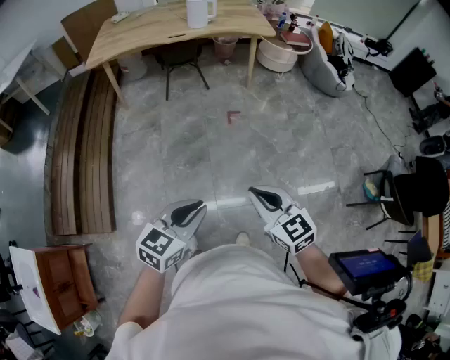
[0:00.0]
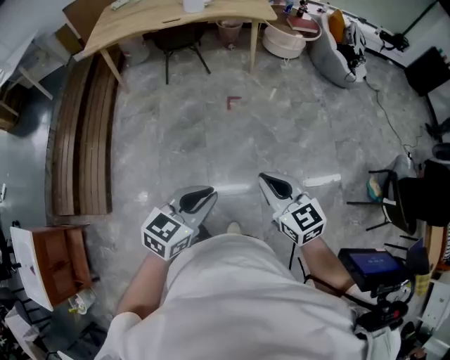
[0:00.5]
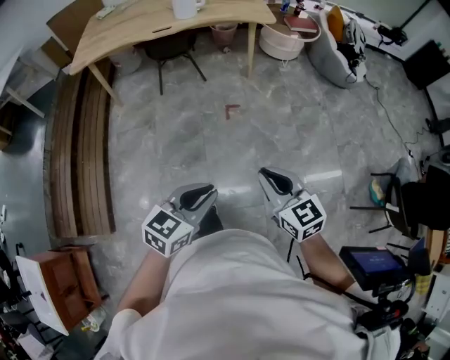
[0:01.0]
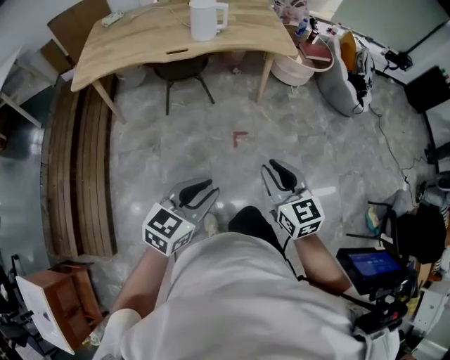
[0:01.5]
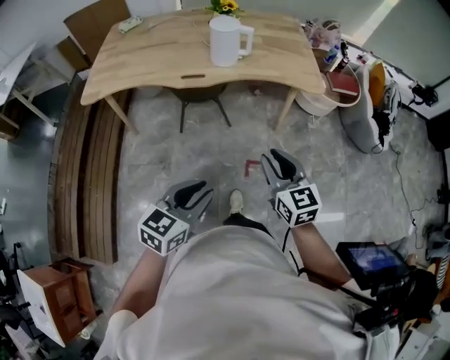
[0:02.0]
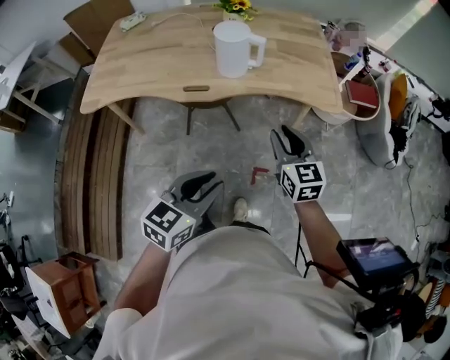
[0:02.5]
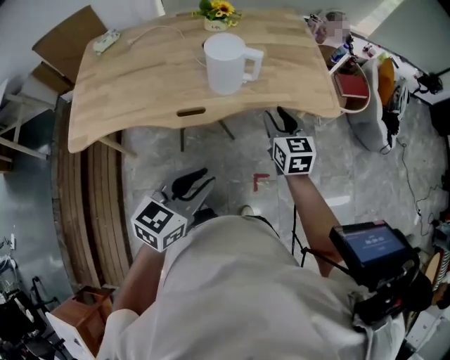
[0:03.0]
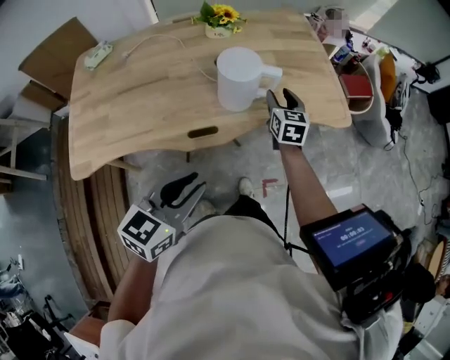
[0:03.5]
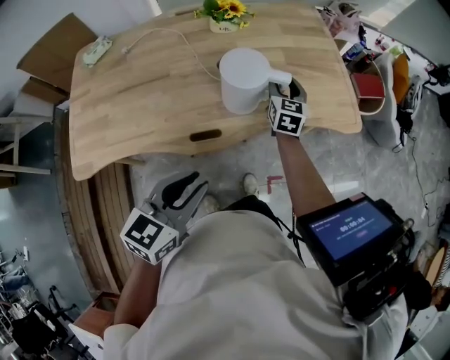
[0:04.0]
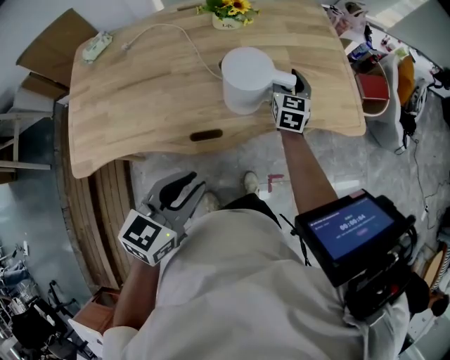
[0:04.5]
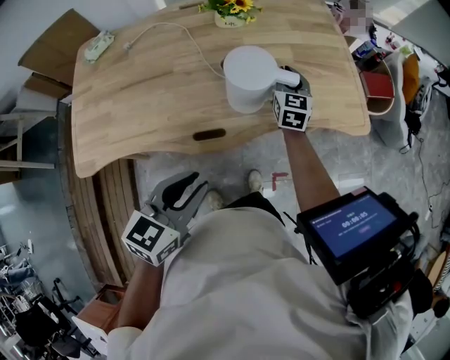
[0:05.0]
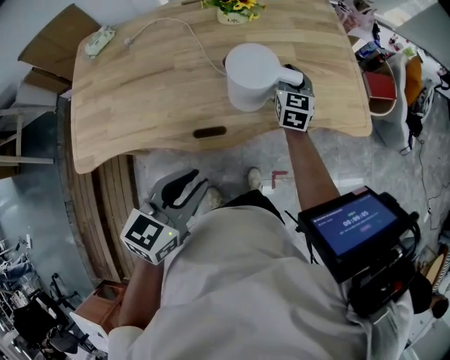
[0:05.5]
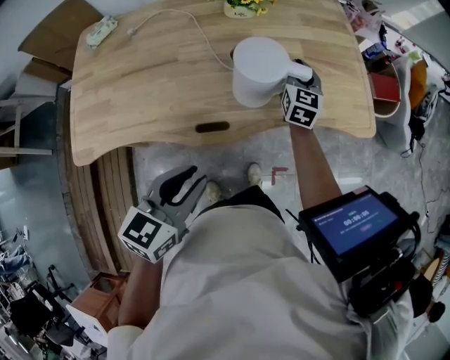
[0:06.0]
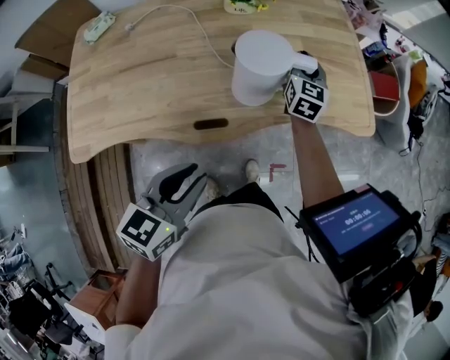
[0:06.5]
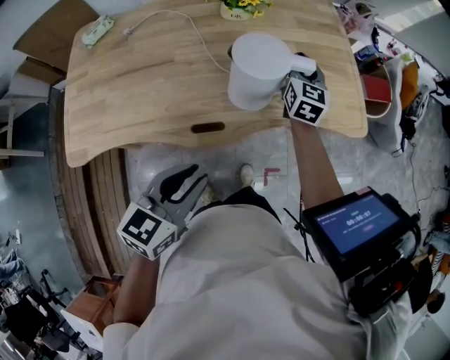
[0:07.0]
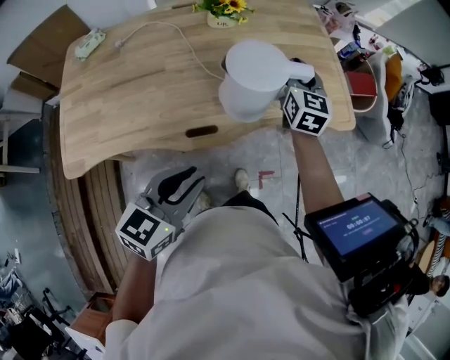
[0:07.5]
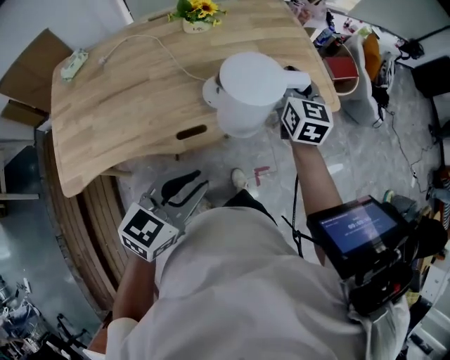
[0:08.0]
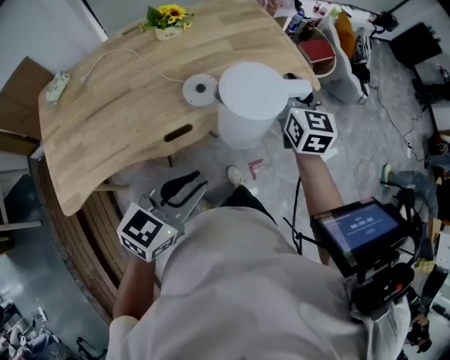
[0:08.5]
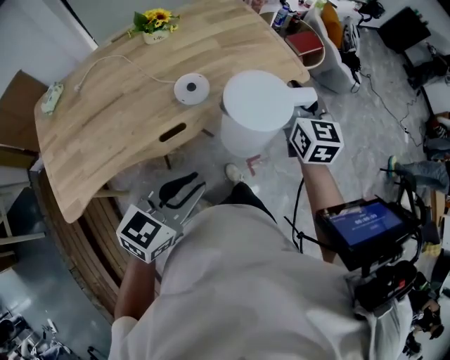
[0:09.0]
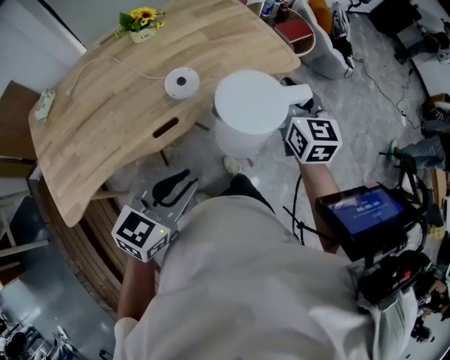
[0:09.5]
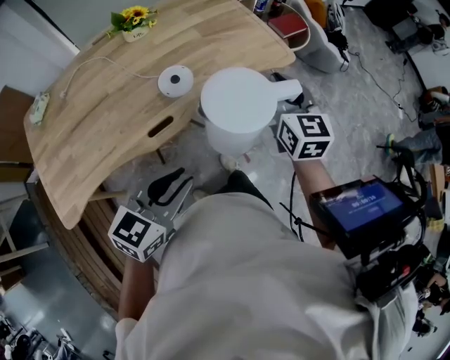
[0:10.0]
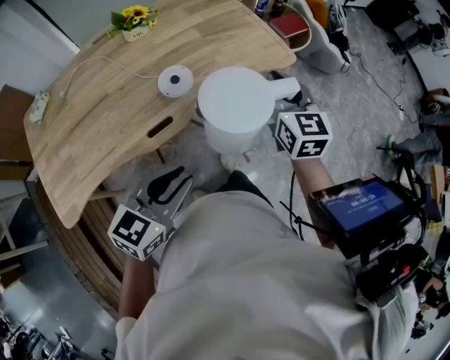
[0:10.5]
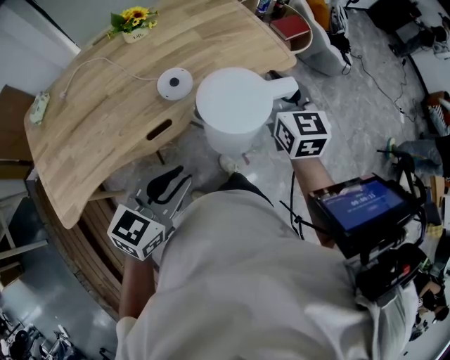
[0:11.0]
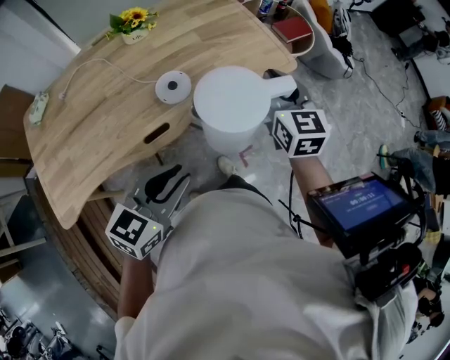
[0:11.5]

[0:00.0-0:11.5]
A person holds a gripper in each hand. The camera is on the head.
0:00.0 to 0:02.0: The two grippers travel together, forward, approximately 60 cm. The right gripper opens.
0:02.0 to 0:04.0: The two grippers travel together, forward and to the left, approximately 50 cm. The right gripper swivels some 30 degrees, and opens.
0:04.0 to 0:06.0: The right gripper closes.
0:06.0 to 0:07.5: The right gripper travels upward by some 10 cm.
0:07.5 to 0:09.5: The right gripper shifts roughly 25 cm to the right and backward. Meanwhile the left gripper goes some 5 cm to the right, and swivels approximately 20 degrees.
0:09.5 to 0:11.5: The grippers make only small movements.

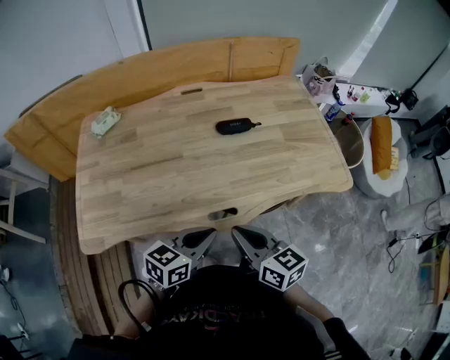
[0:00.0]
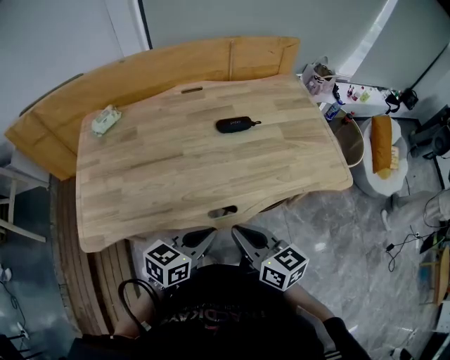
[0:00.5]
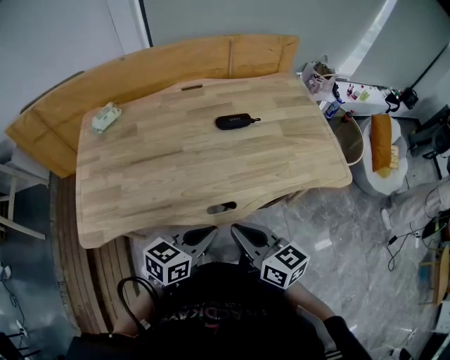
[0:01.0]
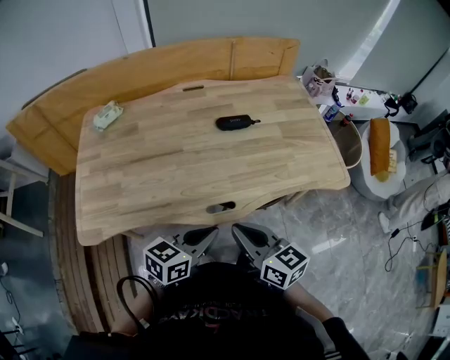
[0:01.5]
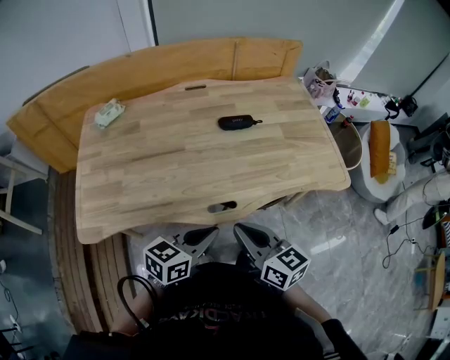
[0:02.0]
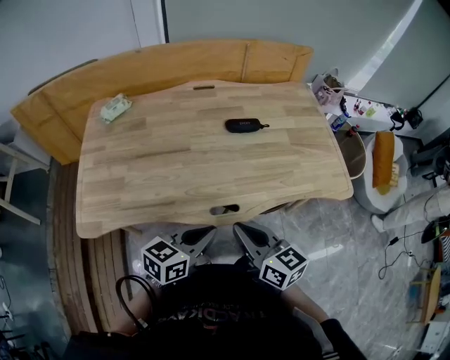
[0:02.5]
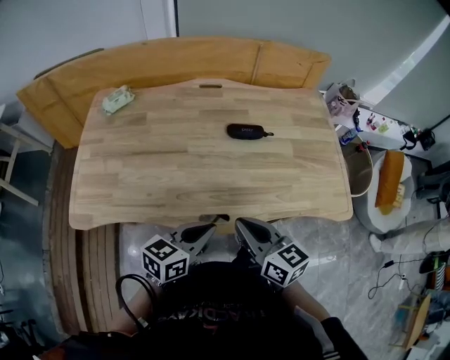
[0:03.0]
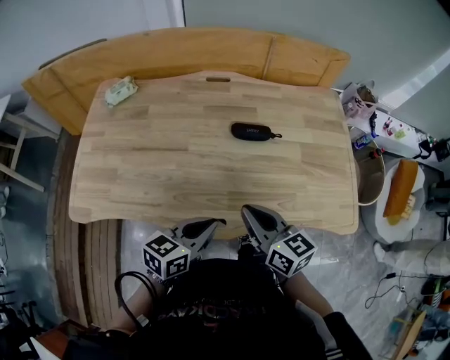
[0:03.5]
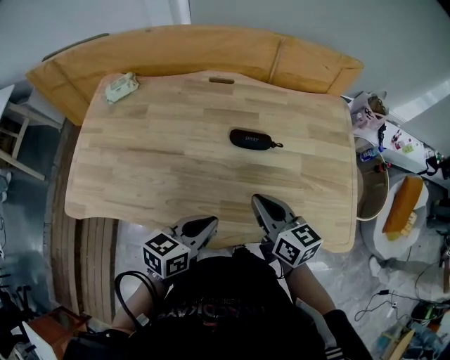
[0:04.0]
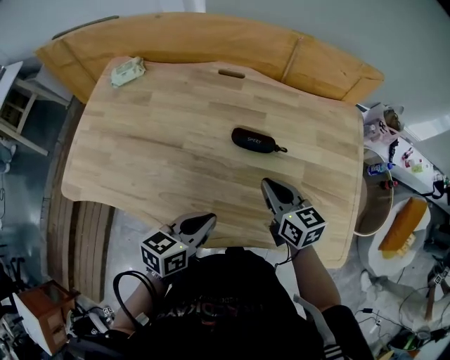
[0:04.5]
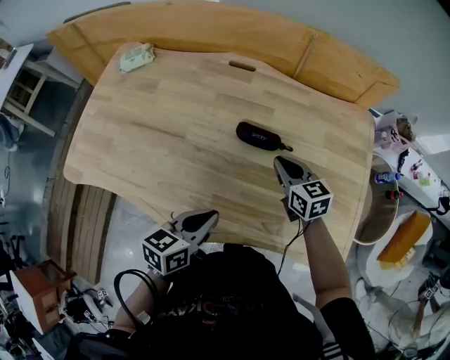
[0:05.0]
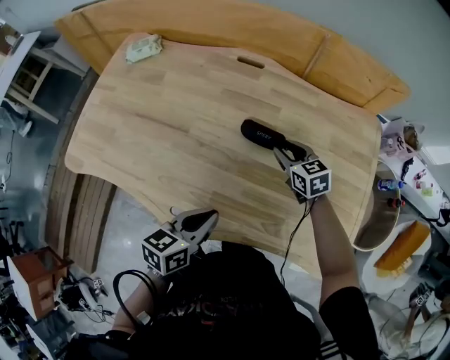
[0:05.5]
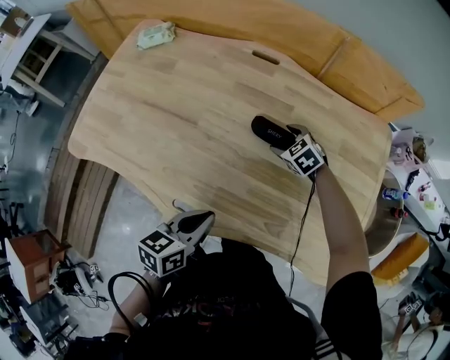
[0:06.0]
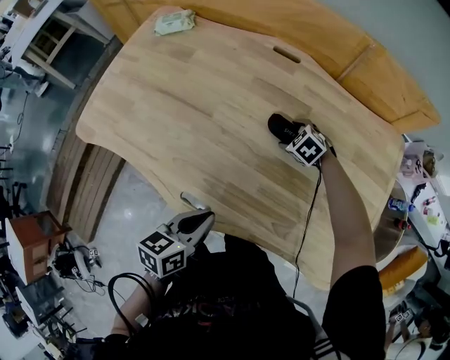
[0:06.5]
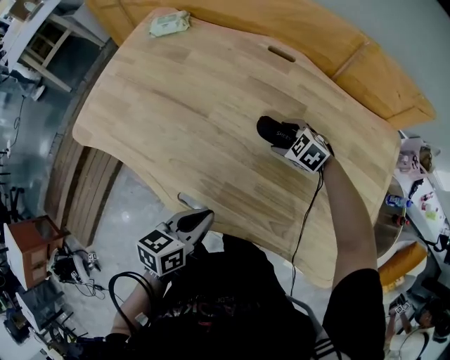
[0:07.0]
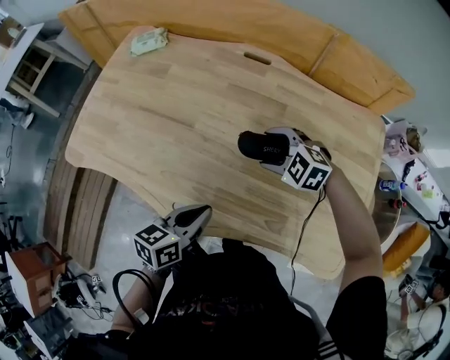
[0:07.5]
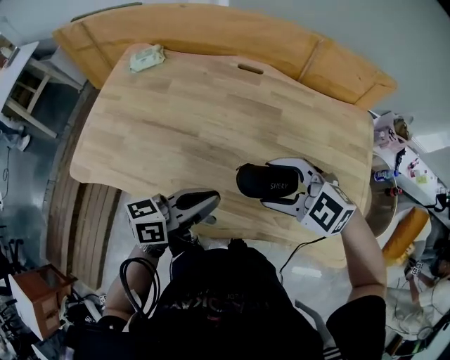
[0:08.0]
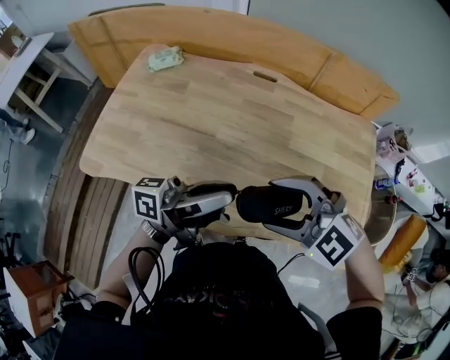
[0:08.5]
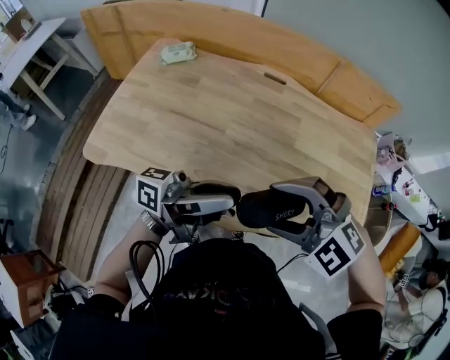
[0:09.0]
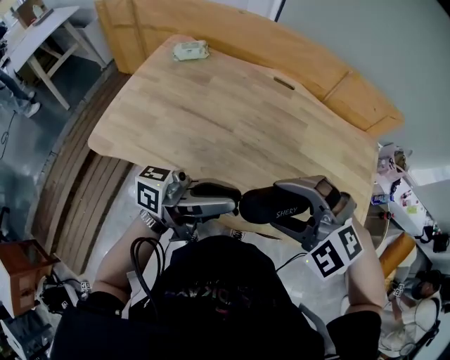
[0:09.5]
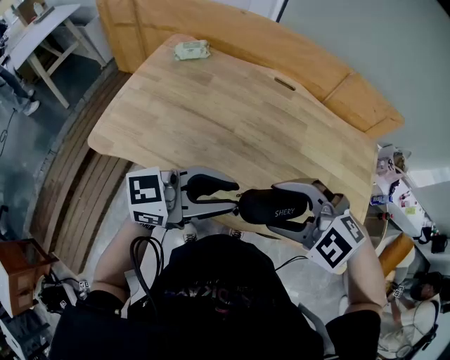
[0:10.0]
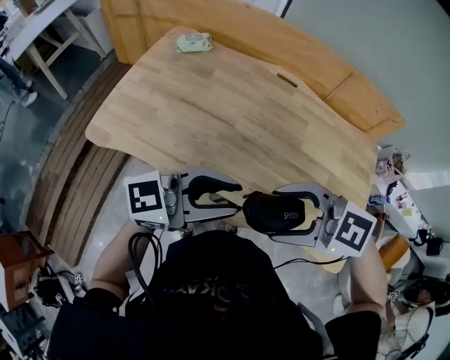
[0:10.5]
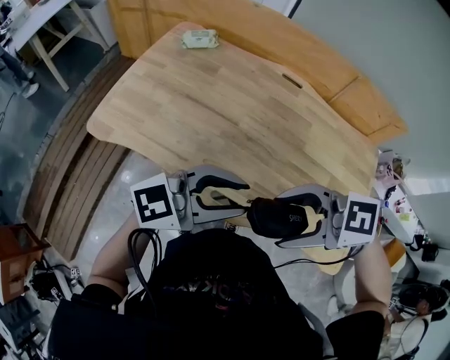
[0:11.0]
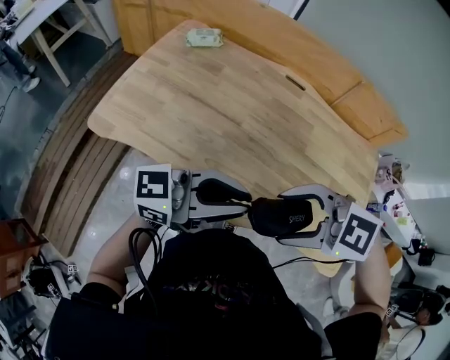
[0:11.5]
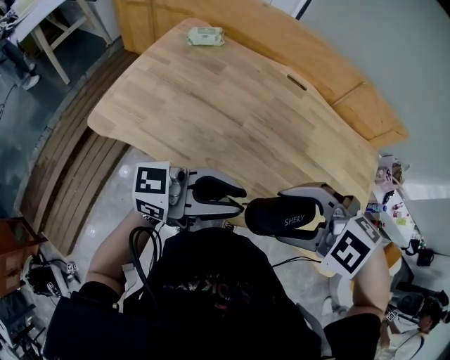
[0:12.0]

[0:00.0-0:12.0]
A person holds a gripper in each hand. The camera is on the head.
0:00.0 to 0:02.0: The grippers make only small movements.
0:02.0 to 0:04.0: The right gripper shifts approximately 25 cm forward and to the right. The left gripper heads forward and to the right, covering roughly 15 cm, and rotates about 20 degrees.
0:04.0 to 0:06.0: The left gripper swivels roughly 20 degrees; the right gripper goes about 30 cm forward and downward, angles its fingers downward, by about 40 degrees, and opens its fingers.
0:06.0 to 0:08.0: The right gripper goes about 25 cm upward, and swivels approximately 30 degrees. Meanwhile the left gripper is displaced upward by roughly 10 cm, and changes its angle by approximately 30 degrees.
0:08.0 to 0:10.0: The right gripper moves about 15 cm; the left gripper shifts approximately 10 cm upward, and changes its angle by some 30 degrees.

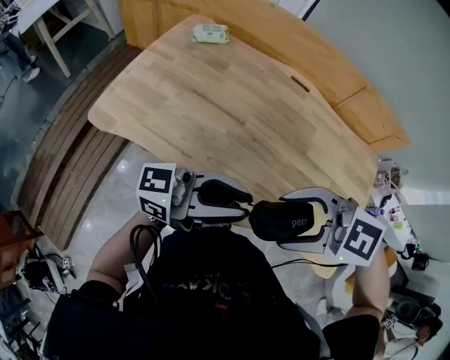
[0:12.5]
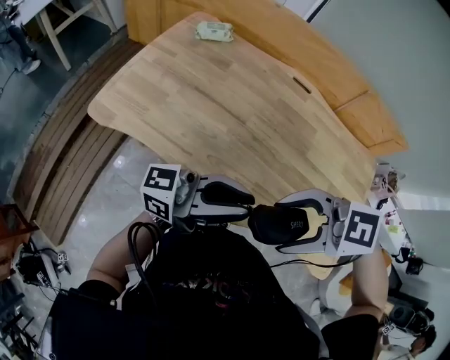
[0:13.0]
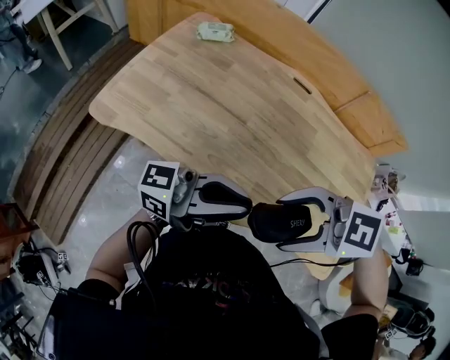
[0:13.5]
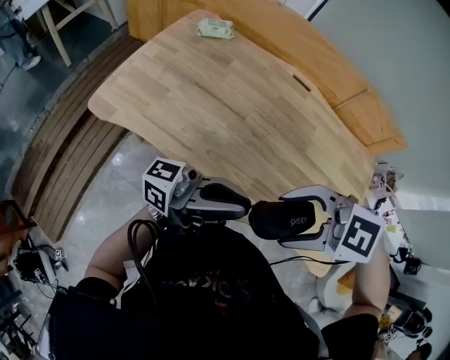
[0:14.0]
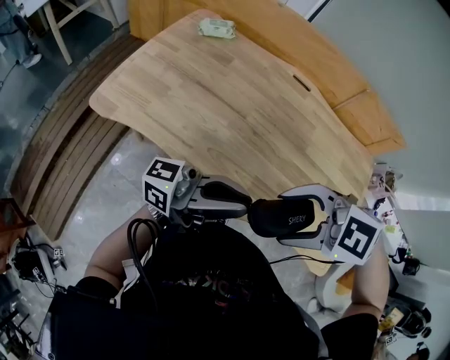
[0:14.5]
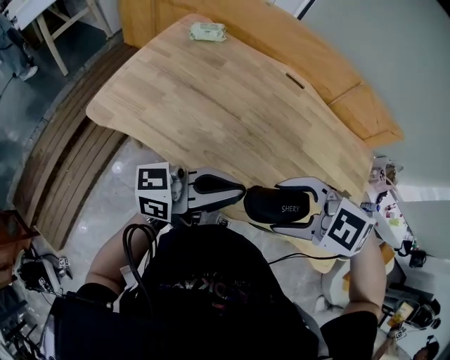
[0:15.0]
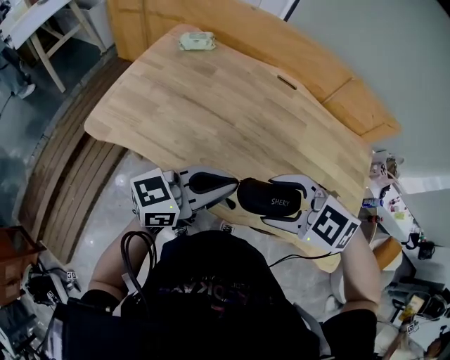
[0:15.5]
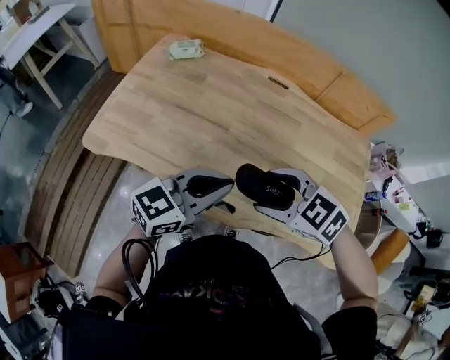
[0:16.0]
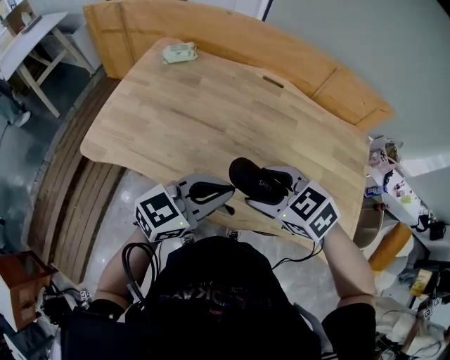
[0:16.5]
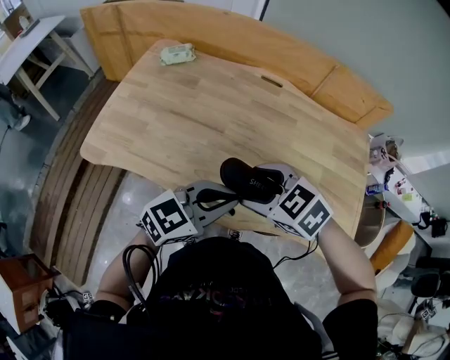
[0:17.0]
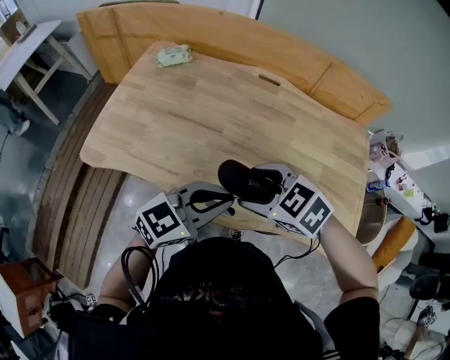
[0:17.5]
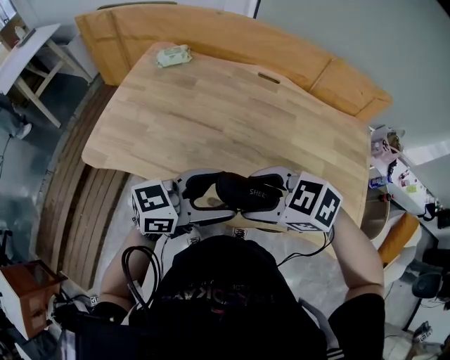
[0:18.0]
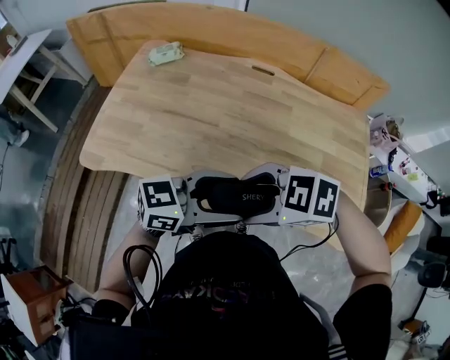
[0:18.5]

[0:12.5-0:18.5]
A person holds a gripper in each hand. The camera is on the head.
0:12.5 to 0:14.5: There are only small adjustments of the grippers.
0:14.5 to 0:16.5: The left gripper heads downward, covering approximately 5 cm, and angles its fingers downward, by approximately 40 degrees. Meanwhile the right gripper shifts by approximately 10 cm, and turns by roughly 40 degrees.
0:16.5 to 0:18.5: The right gripper moves approximately 5 cm, and swivels approximately 30 degrees. The left gripper swivels about 20 degrees, and opens.
